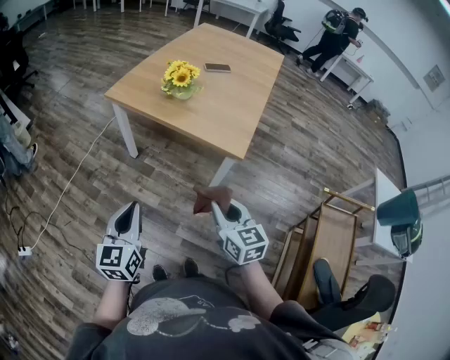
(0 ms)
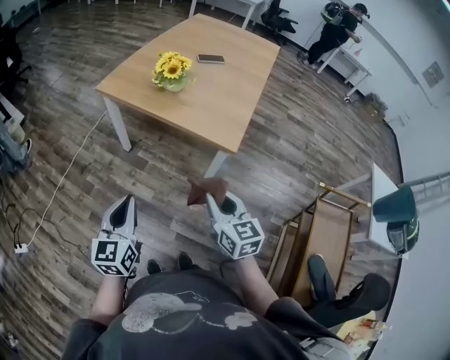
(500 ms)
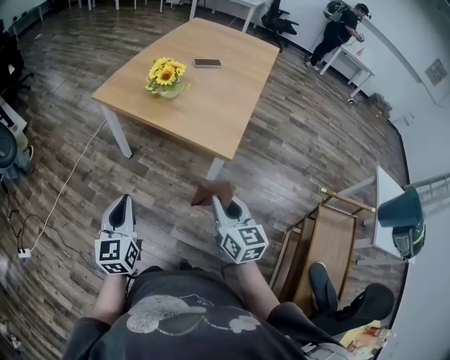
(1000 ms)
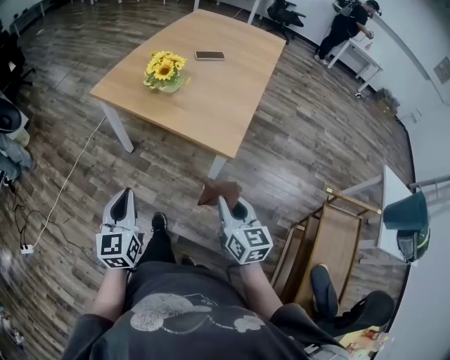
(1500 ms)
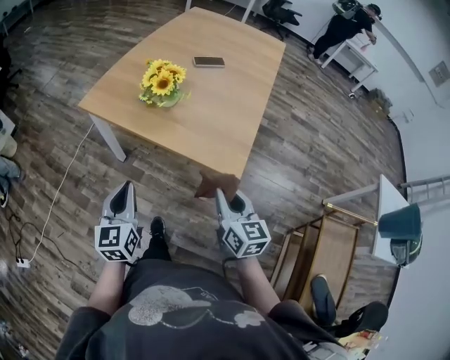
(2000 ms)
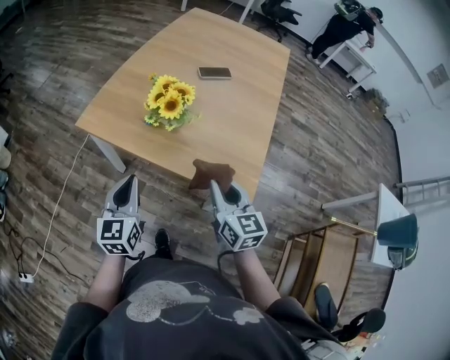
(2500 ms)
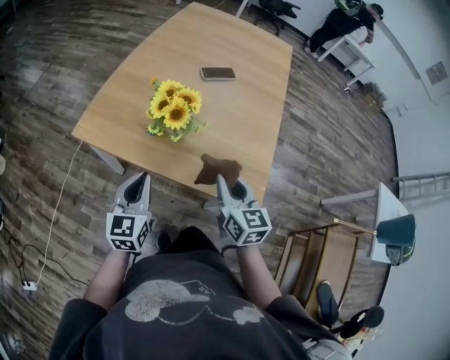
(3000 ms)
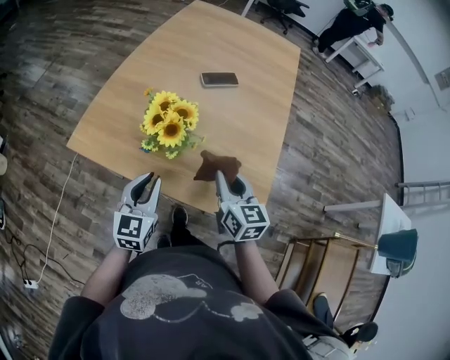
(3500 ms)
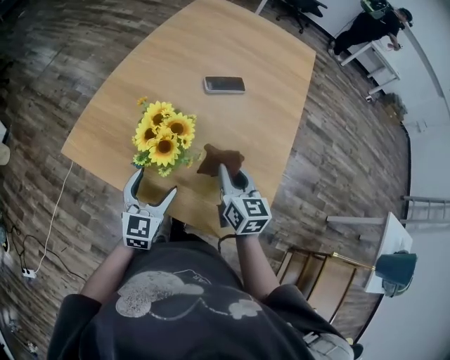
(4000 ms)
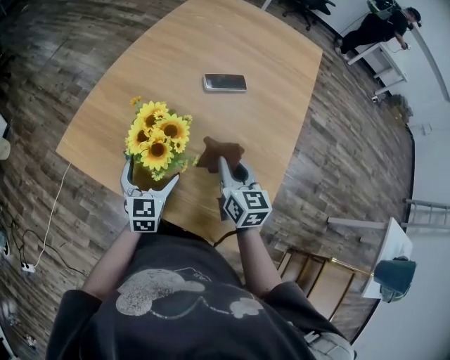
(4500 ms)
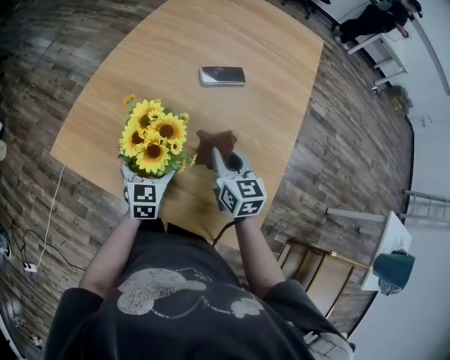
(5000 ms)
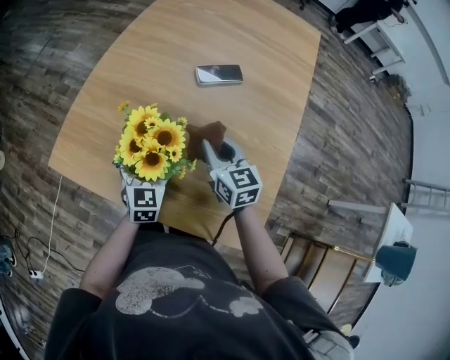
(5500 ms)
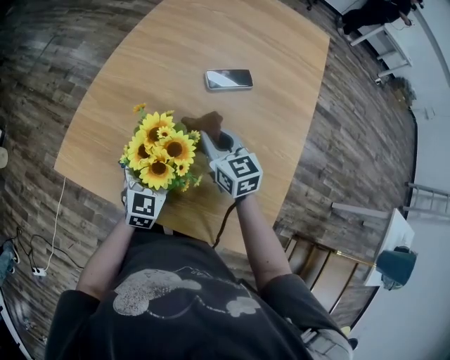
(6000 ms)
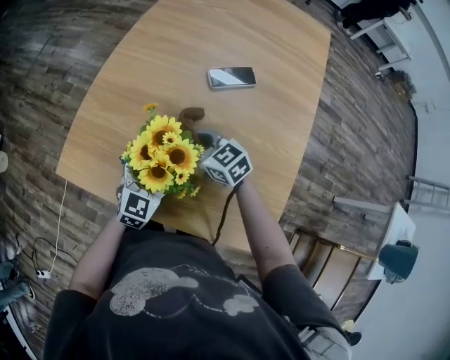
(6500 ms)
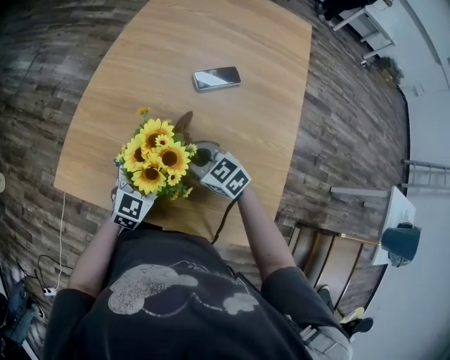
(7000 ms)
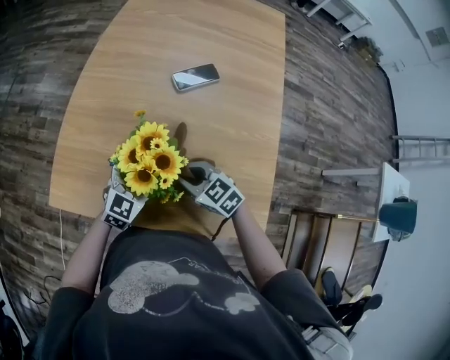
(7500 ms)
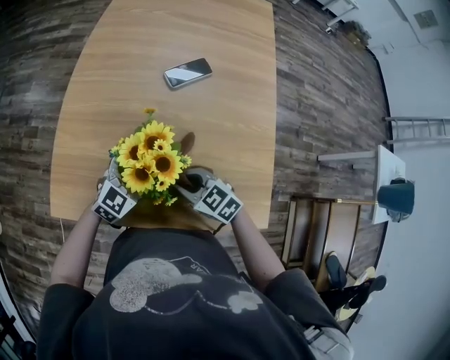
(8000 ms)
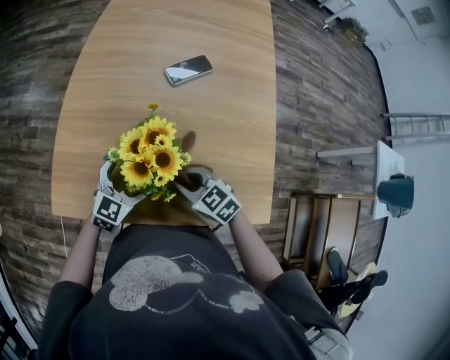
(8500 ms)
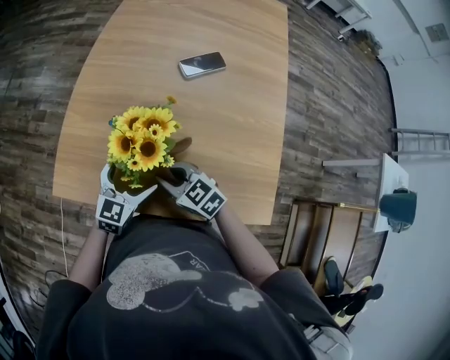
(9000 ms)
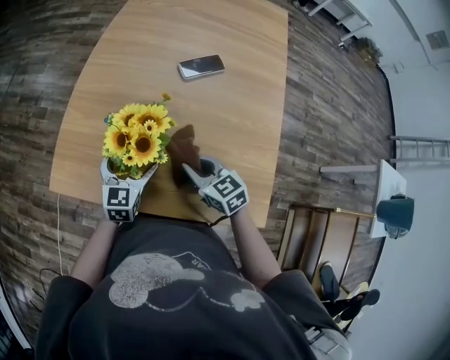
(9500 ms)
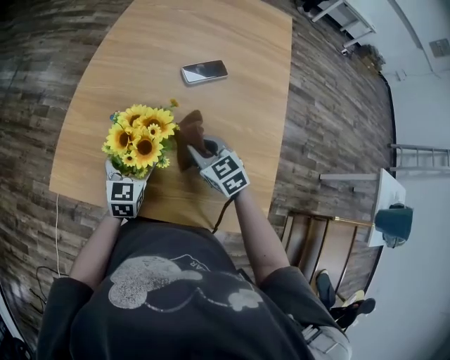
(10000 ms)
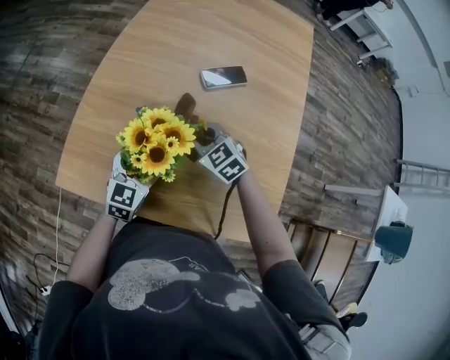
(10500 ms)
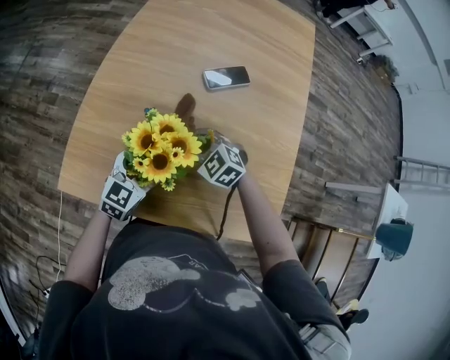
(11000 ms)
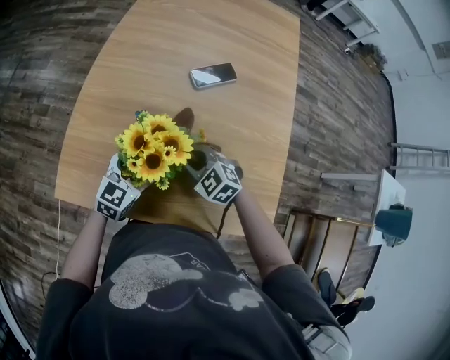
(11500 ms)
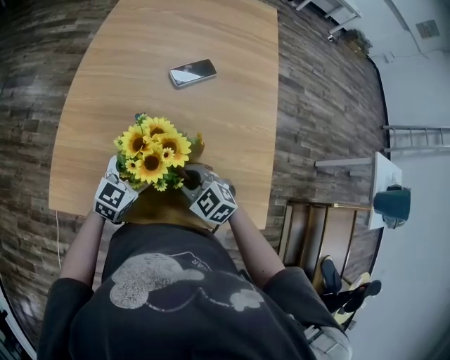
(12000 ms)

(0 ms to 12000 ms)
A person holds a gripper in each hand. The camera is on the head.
0 ms - 2000 ms: Both grippers travel together forward, some 20 cm.
2000 ms - 4000 ms: The grippers both shift forward by about 30 cm. The left gripper opens.
4000 ms - 6000 ms: The left gripper goes roughly 10 cm forward. Meanwhile the right gripper moves forward and to the left, about 15 cm.
6000 ms - 8000 ms: The left gripper swivels about 40 degrees, while the right gripper is displaced backward, to the left and downward by roughly 15 cm, and rotates roughly 20 degrees.
8000 ms - 10000 ms: The left gripper turns by approximately 50 degrees. The right gripper moves forward and to the right, some 10 cm.
10000 ms - 12000 ms: The left gripper changes its angle by some 30 degrees. The right gripper shifts roughly 10 cm backward and to the left.

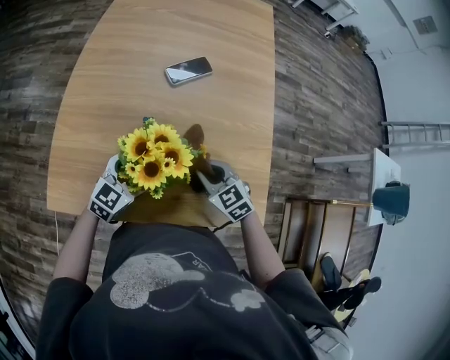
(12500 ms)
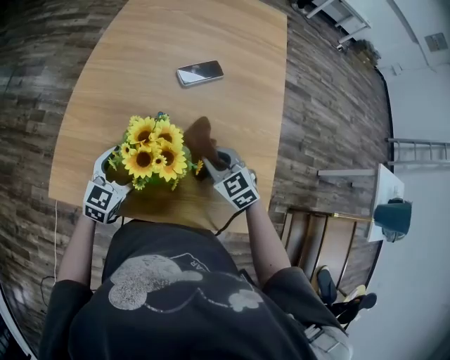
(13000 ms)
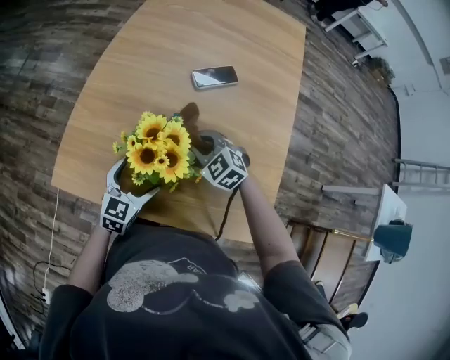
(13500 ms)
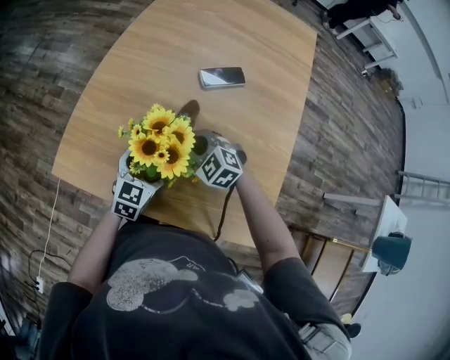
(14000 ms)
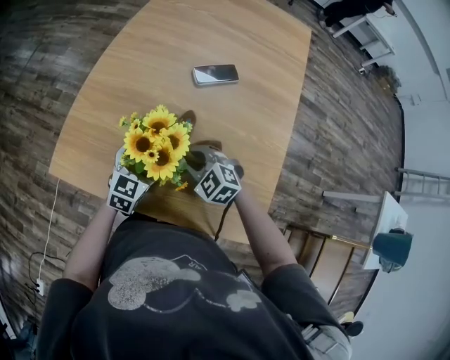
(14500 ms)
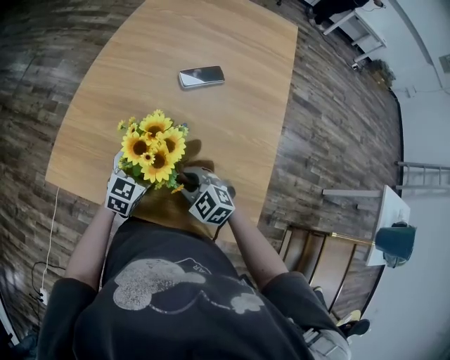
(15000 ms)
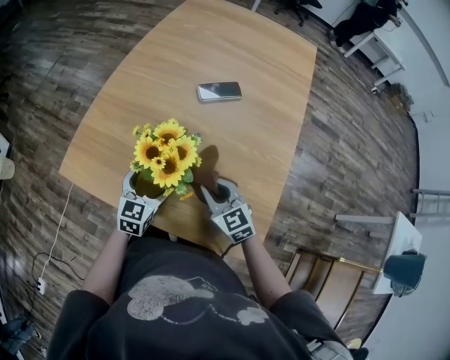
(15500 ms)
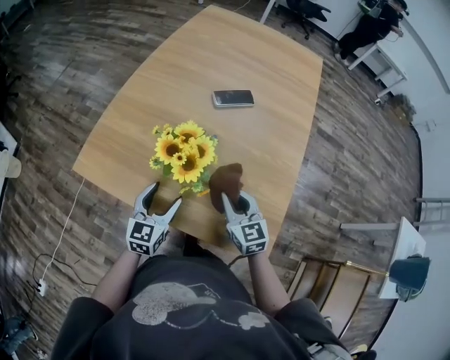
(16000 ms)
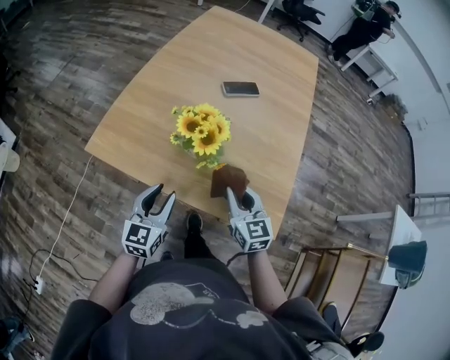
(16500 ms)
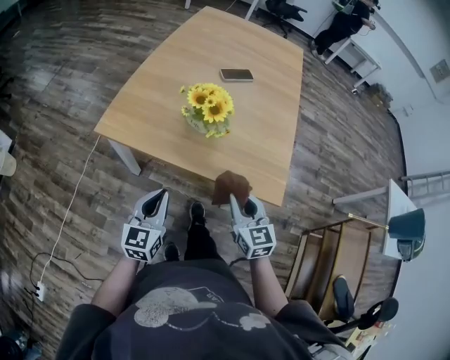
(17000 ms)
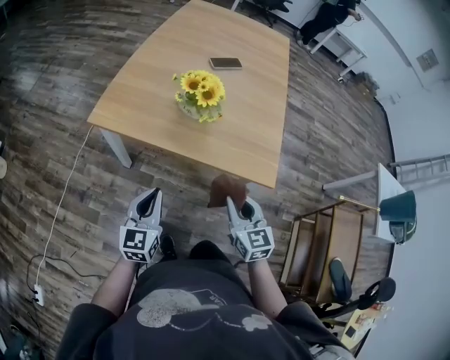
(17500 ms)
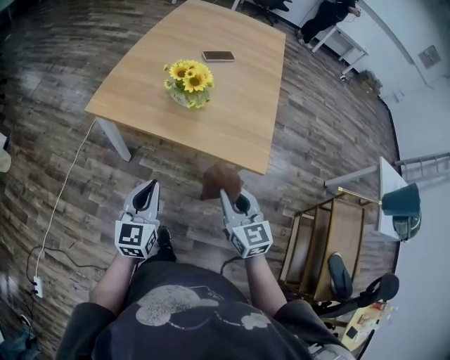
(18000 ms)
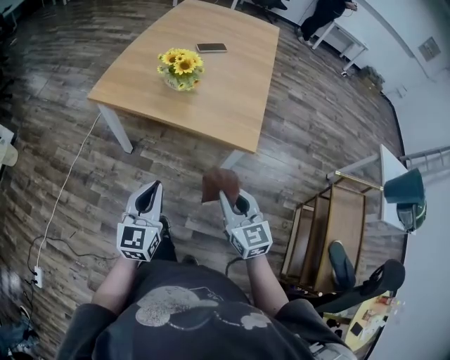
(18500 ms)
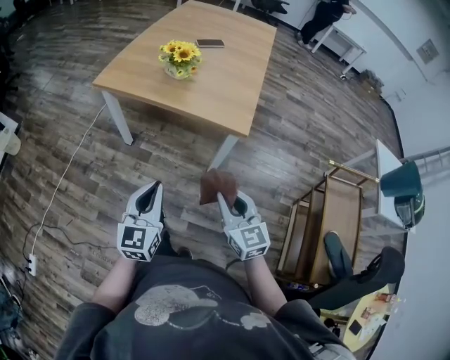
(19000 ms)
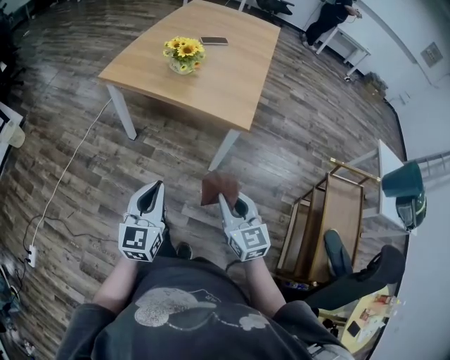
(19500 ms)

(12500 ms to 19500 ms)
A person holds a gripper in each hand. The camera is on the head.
12500 ms - 14500 ms: The left gripper turns by some 30 degrees, while the right gripper rotates some 40 degrees.
14500 ms - 16000 ms: The right gripper is displaced to the right and backward by some 10 cm, and changes its angle by some 50 degrees, while the left gripper moves backward, about 10 cm, and closes its fingers.
16000 ms - 17500 ms: The grippers both shift backward by roughly 25 cm. The left gripper closes its fingers.
17500 ms - 19500 ms: The left gripper goes about 30 cm backward and to the right. The right gripper is displaced backward by some 25 cm.

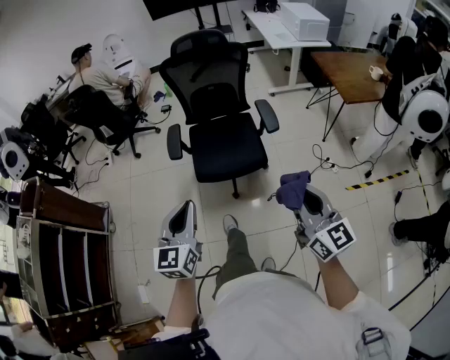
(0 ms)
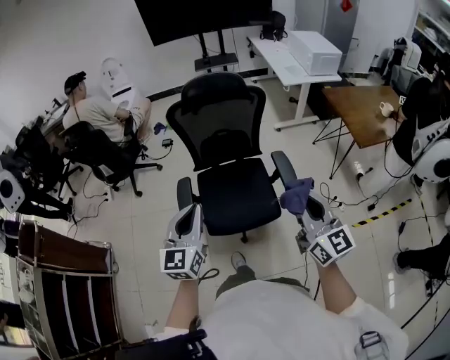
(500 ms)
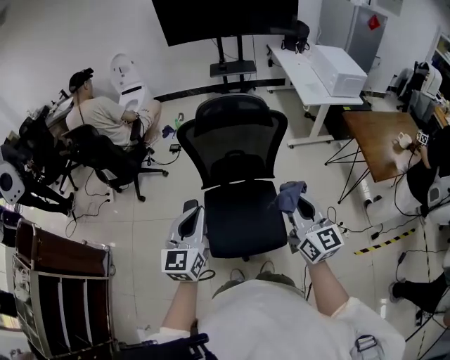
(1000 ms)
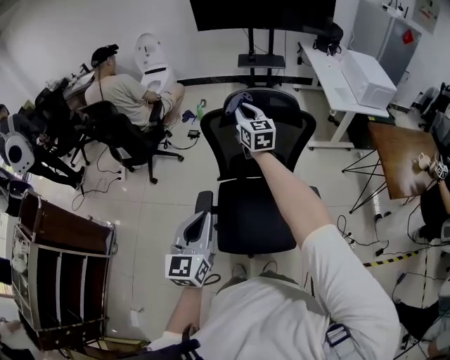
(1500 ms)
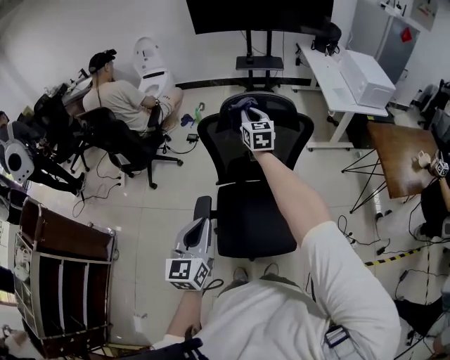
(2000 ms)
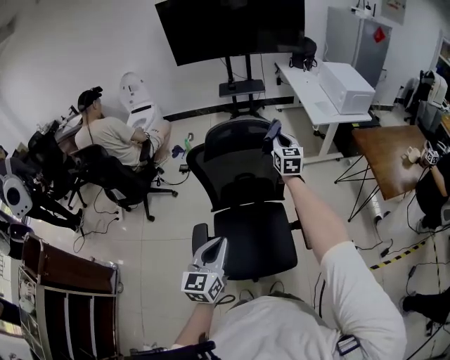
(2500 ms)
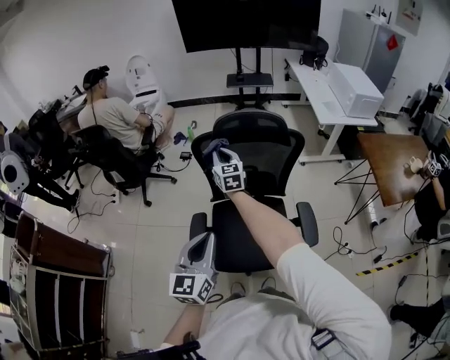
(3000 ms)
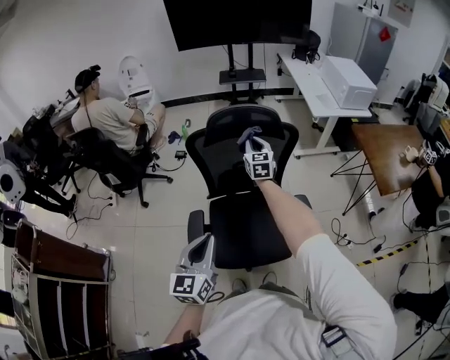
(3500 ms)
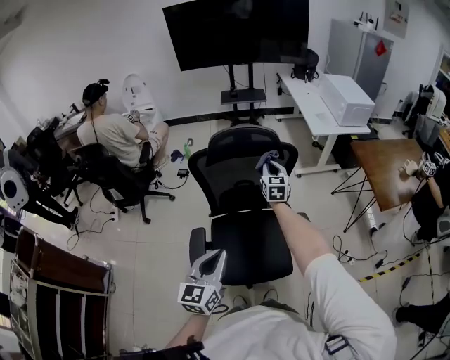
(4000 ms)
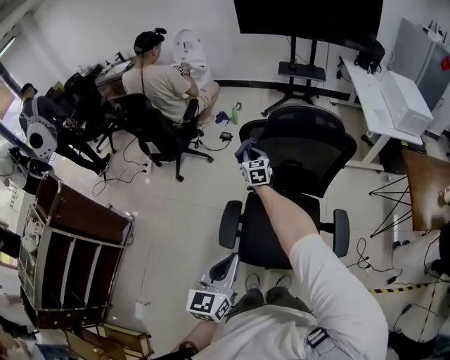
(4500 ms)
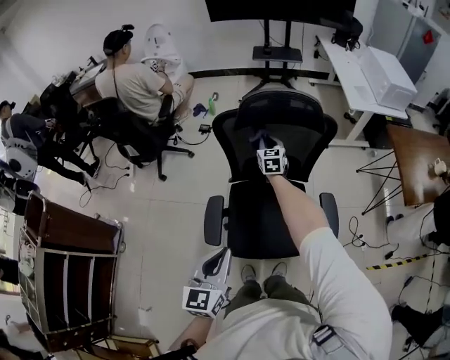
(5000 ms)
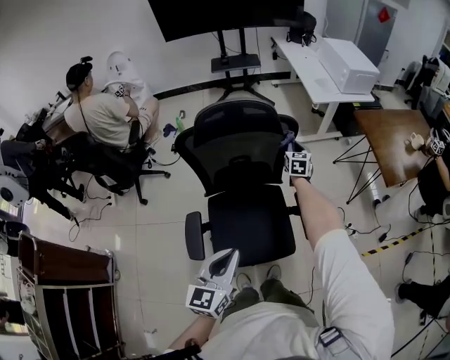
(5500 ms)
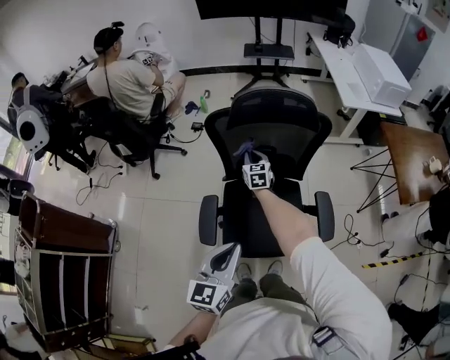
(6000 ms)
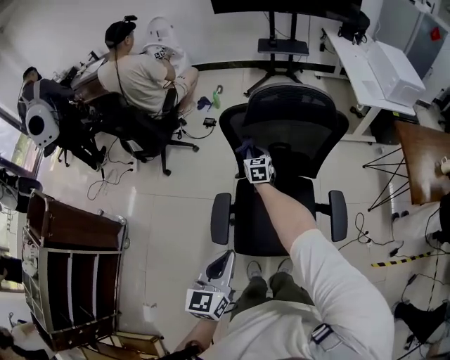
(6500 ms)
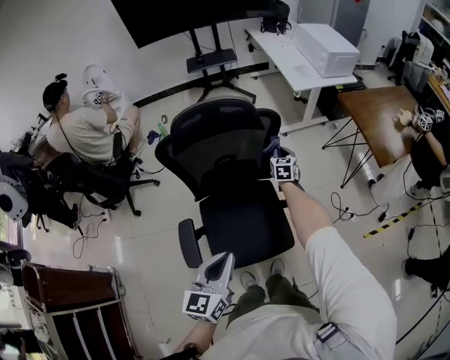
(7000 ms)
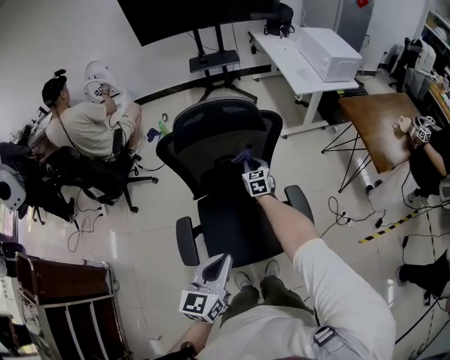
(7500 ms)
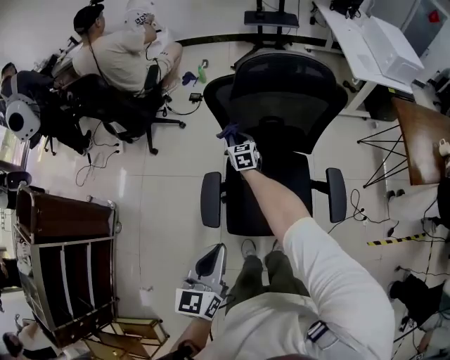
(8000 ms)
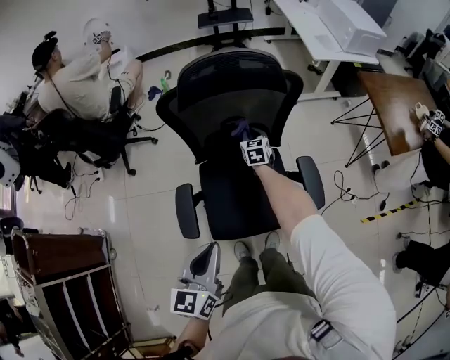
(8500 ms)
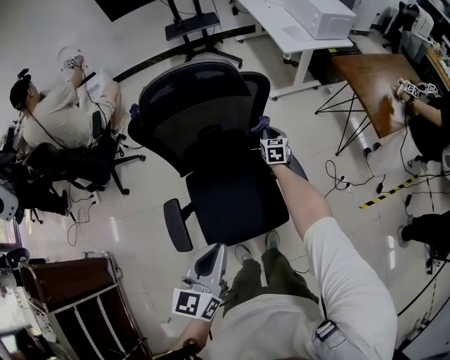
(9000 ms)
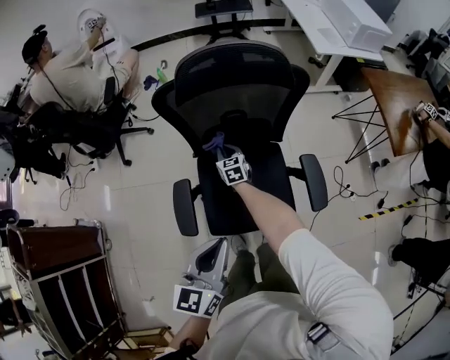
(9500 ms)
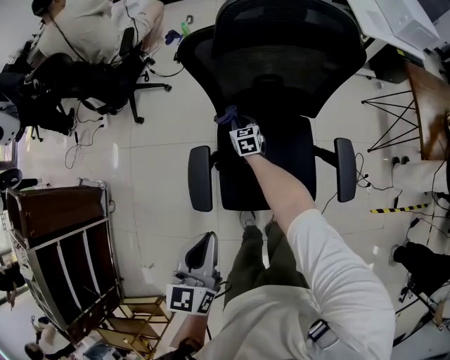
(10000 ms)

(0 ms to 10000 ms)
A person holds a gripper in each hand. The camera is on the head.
0 ms - 2000 ms: The left gripper moves forward, roughly 40 cm; the right gripper moves forward, some 80 cm, and turns by approximately 20 degrees.
2000 ms - 4000 ms: The right gripper goes left and right, about 25 cm each way, reversing 2 times. The left gripper shifts about 10 cm backward and downward.
4000 ms - 6000 ms: The right gripper moves approximately 20 cm, and turns by approximately 20 degrees. Meanwhile the left gripper shifts by some 10 cm.
6000 ms - 8000 ms: The left gripper ends up roughly 5 cm from where it was.
8000 ms - 10000 ms: The left gripper ends up roughly 15 cm from where it was; the right gripper goes approximately 15 cm downward.
